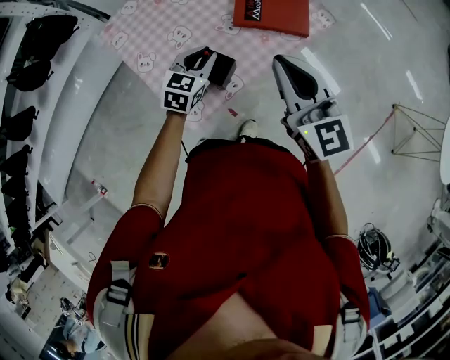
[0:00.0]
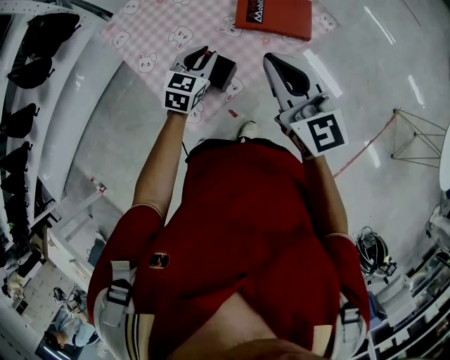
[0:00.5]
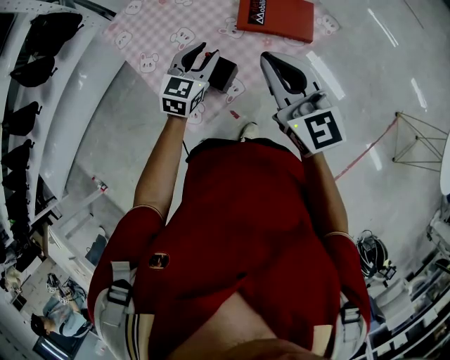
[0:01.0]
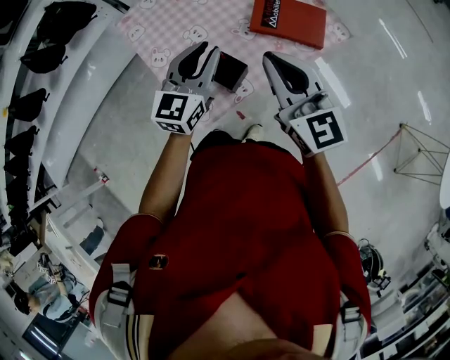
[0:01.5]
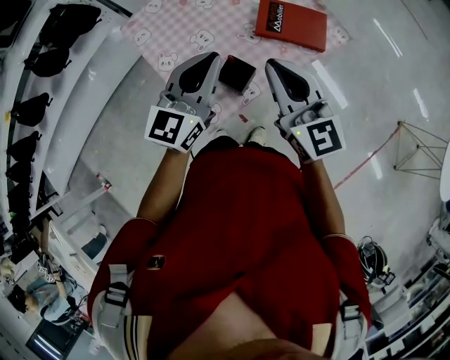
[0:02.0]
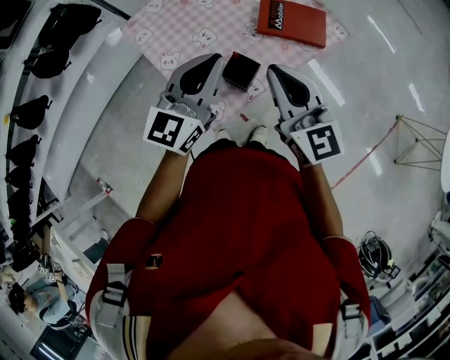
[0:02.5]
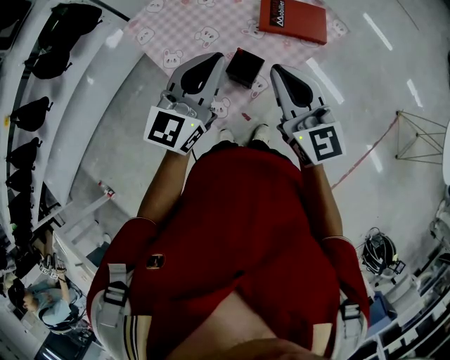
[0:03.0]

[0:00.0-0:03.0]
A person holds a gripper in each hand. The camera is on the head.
0:00.0 to 0:01.5: The left gripper heads upward, covering about 10 cm, and swivels some 20 degrees.
0:01.5 to 0:03.0: The right gripper is displaced backward and to the left by approximately 10 cm; the left gripper is displaced upward and backward by some 10 cm, and closes its fingers.

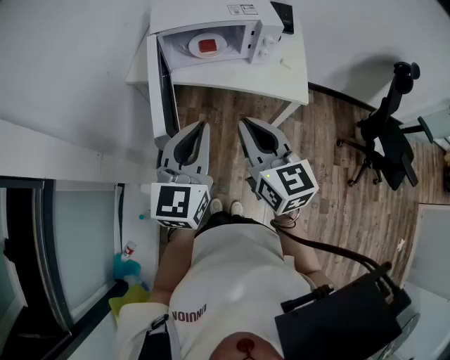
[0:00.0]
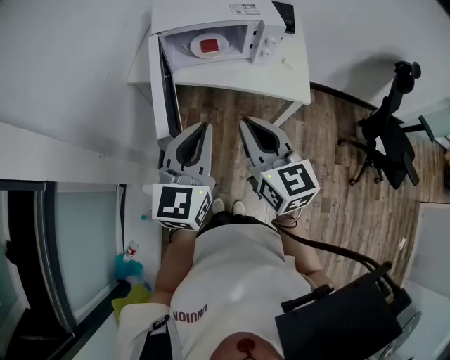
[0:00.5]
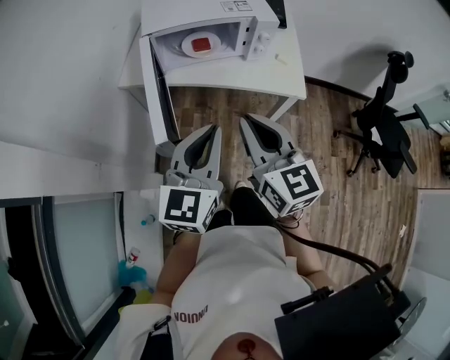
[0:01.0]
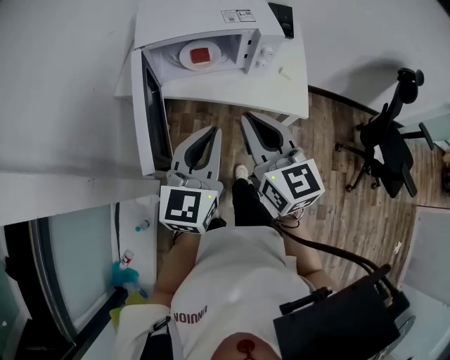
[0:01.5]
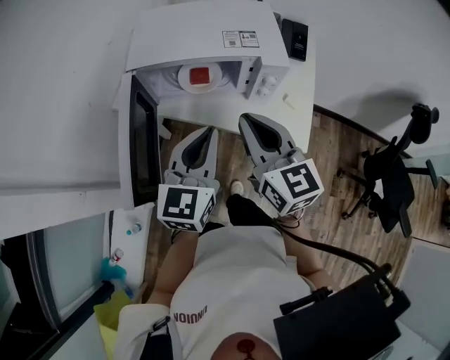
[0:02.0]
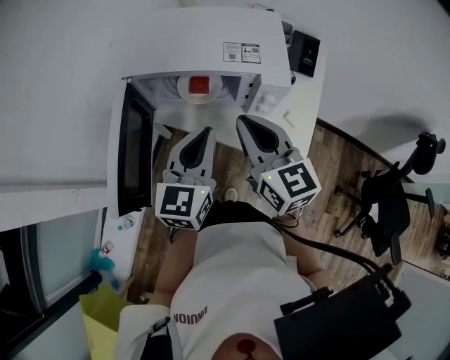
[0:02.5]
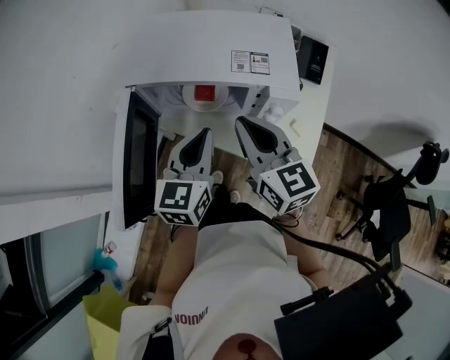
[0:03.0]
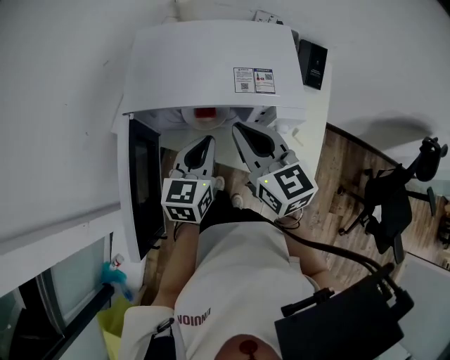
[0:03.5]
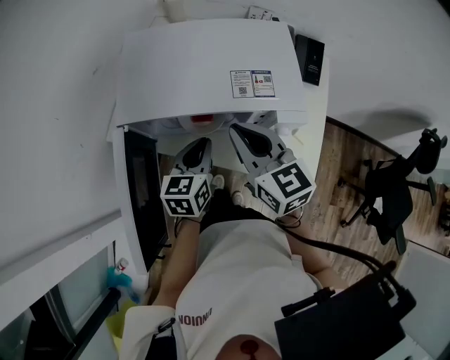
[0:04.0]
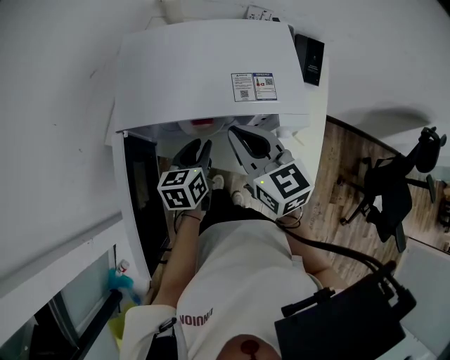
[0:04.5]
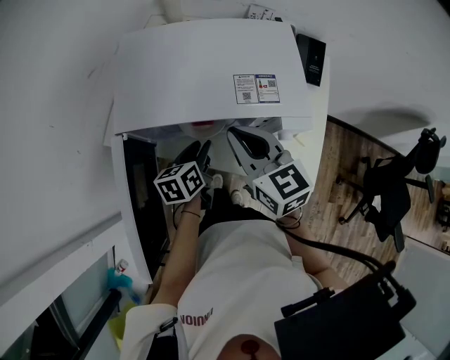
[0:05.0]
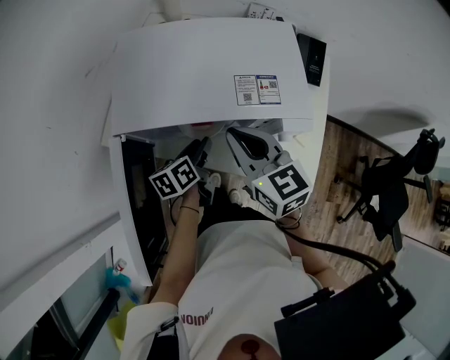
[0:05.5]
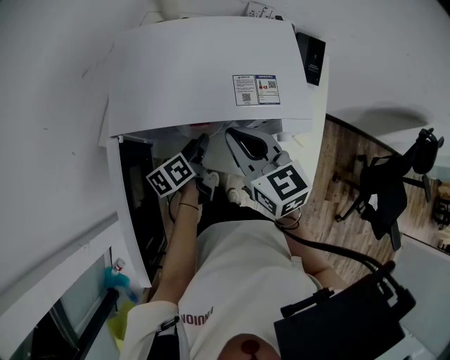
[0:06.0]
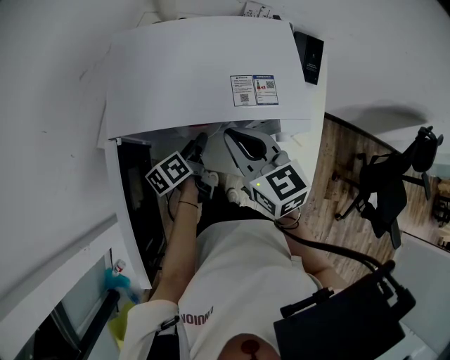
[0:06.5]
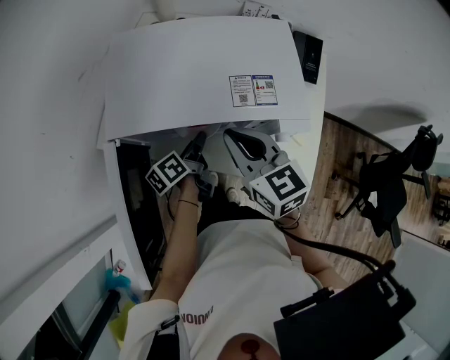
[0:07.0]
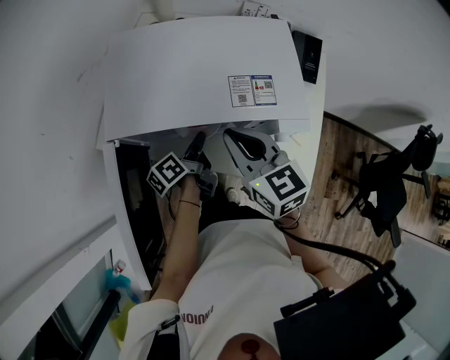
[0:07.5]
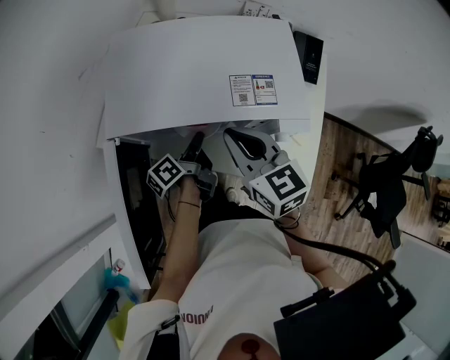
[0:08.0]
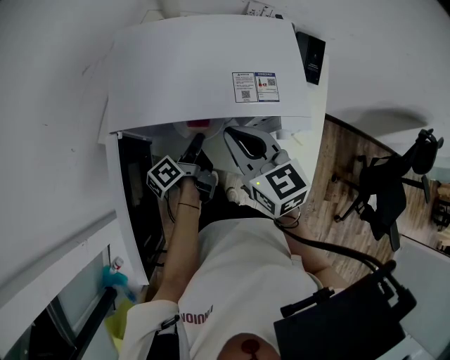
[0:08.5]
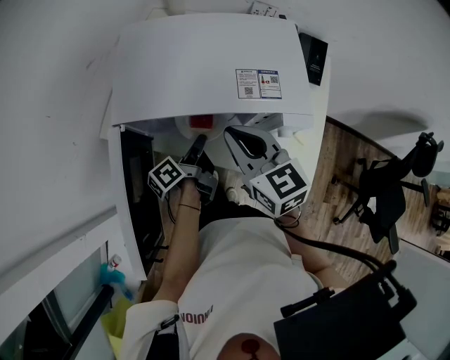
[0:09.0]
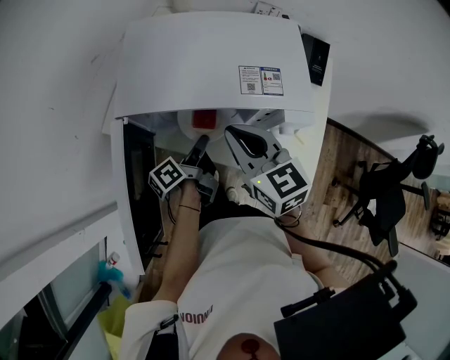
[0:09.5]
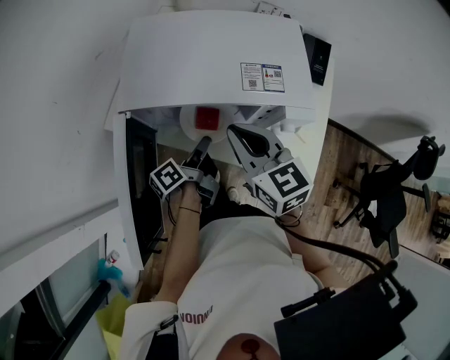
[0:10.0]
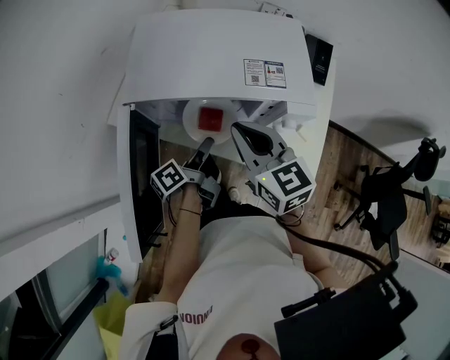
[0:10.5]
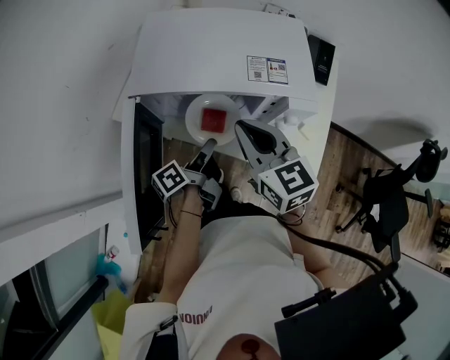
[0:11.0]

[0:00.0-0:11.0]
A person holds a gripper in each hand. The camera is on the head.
0:00.0 to 0:02.0: The right gripper goes about 20 cm forward, while the left gripper travels forward and to the right by some 20 cm.
0:02.0 to 0:03.5: The right gripper heads forward, covering about 15 cm. Meanwhile the left gripper is displaced forward and downward by approximately 15 cm.
0:03.5 to 0:05.5: The right gripper moves approximately 5 cm. The left gripper travels downward and forward by some 15 cm, changes its angle by about 40 degrees, and opens.
0:05.5 to 0:07.5: The left gripper turns by roughly 30 degrees.
0:07.5 to 0:09.0: The grippers make only small movements.
0:09.0 to 0:11.0: The left gripper shifts about 5 cm backward.

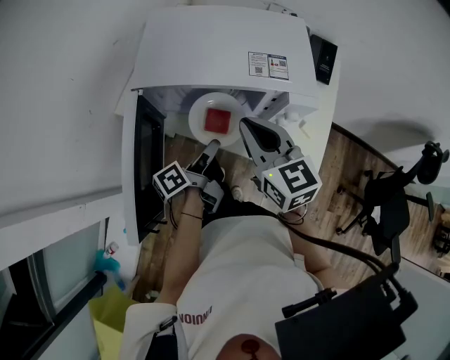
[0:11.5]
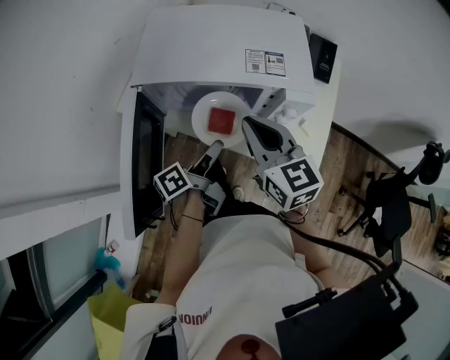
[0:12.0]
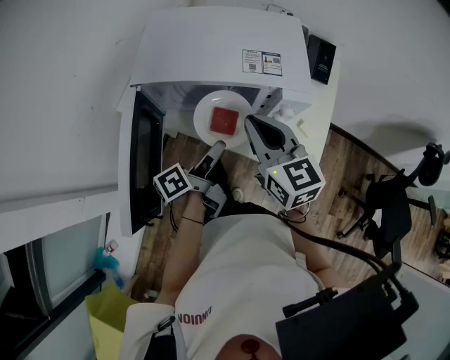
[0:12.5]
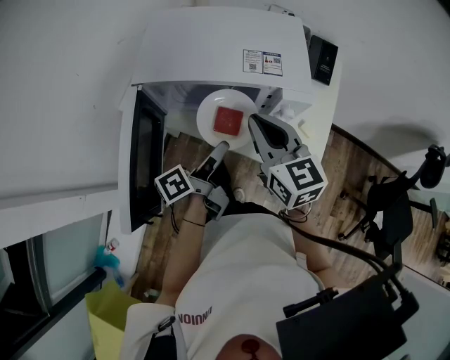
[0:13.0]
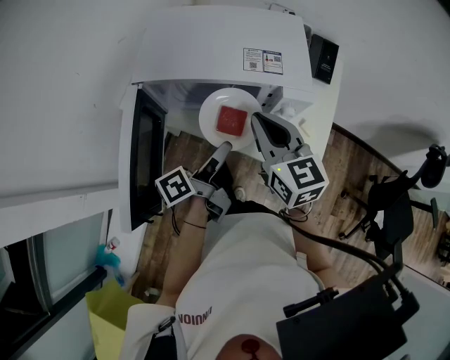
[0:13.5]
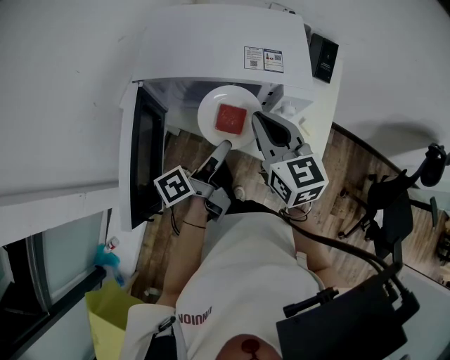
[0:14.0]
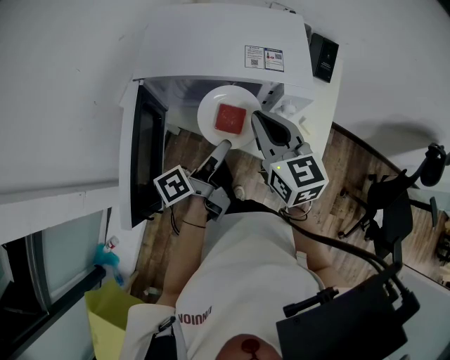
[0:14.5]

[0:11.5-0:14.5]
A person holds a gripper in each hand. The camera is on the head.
0:11.5 to 0:13.0: The left gripper goes about 5 cm upward.
0:13.0 to 0:14.5: There are only small adjustments of the grippers.

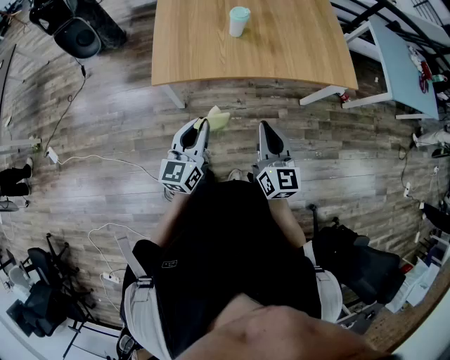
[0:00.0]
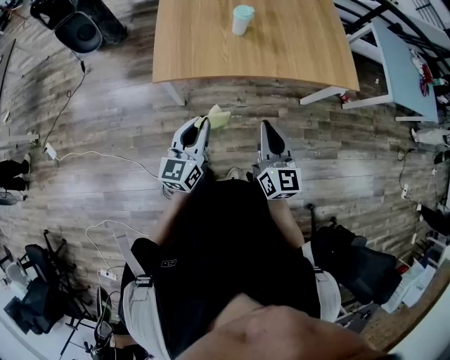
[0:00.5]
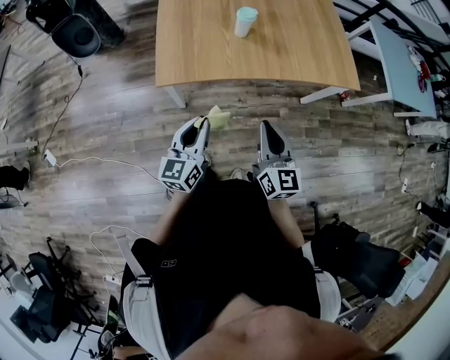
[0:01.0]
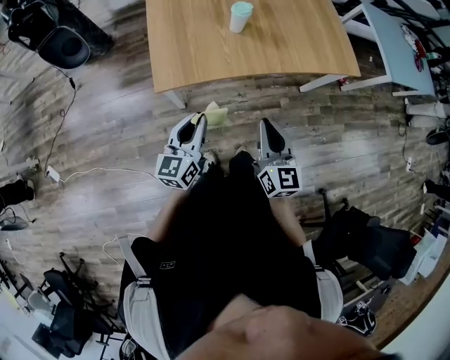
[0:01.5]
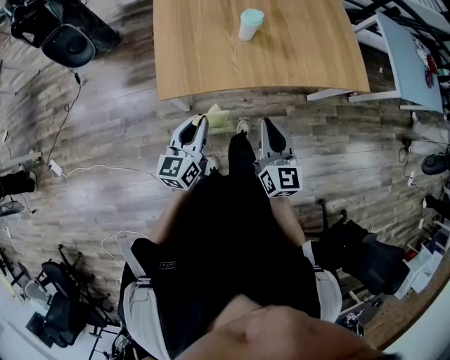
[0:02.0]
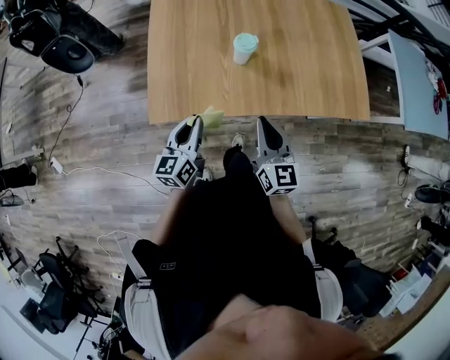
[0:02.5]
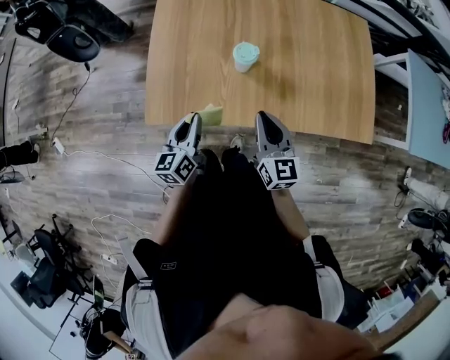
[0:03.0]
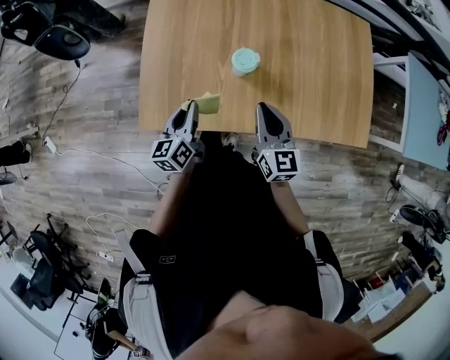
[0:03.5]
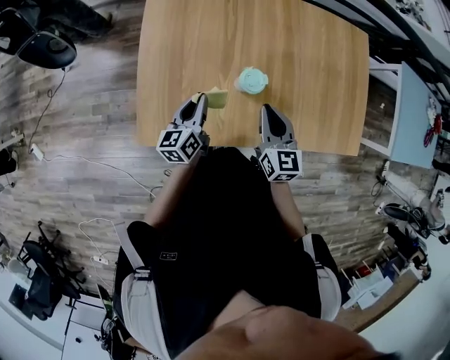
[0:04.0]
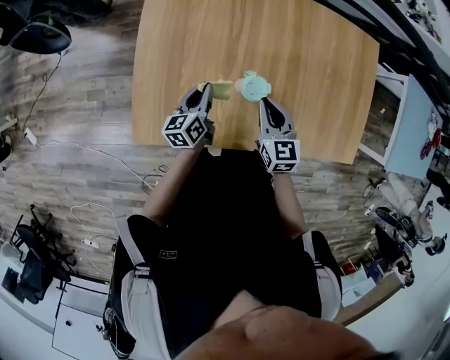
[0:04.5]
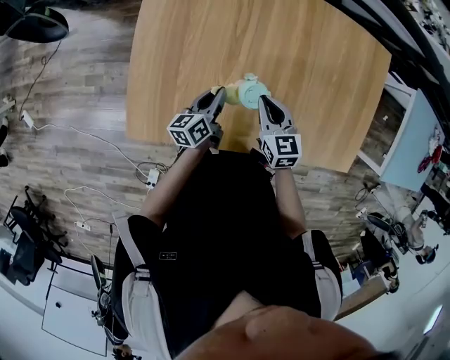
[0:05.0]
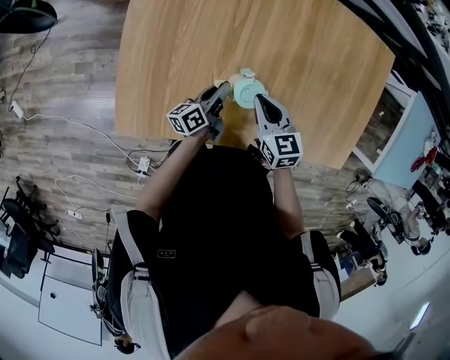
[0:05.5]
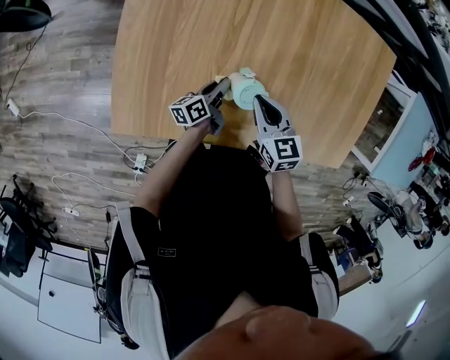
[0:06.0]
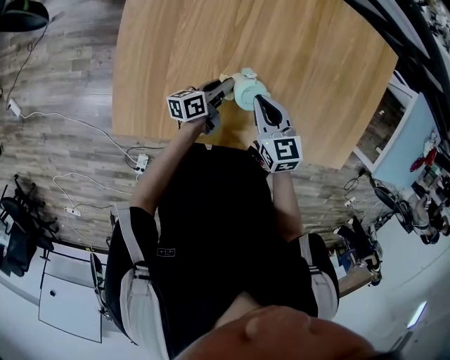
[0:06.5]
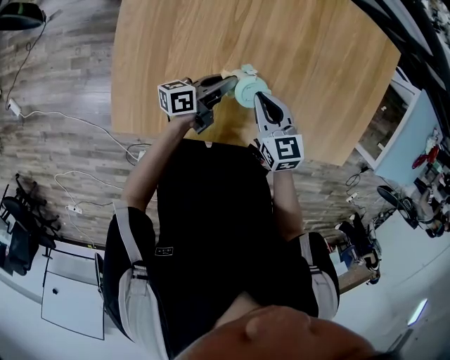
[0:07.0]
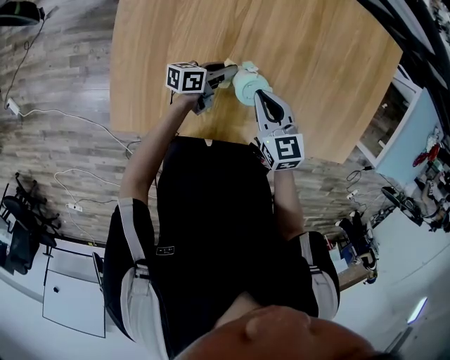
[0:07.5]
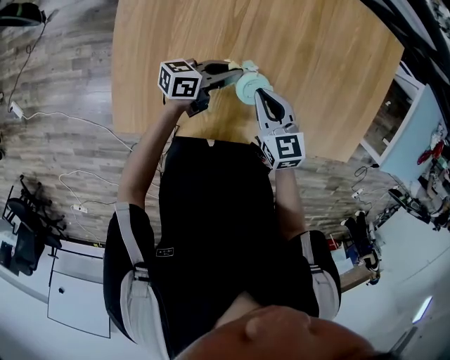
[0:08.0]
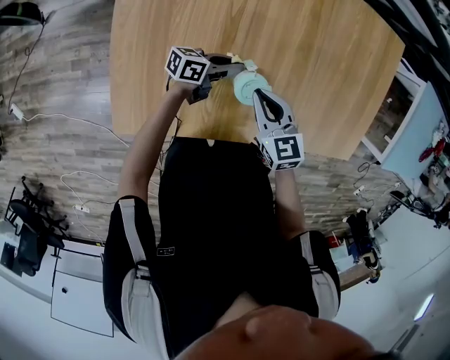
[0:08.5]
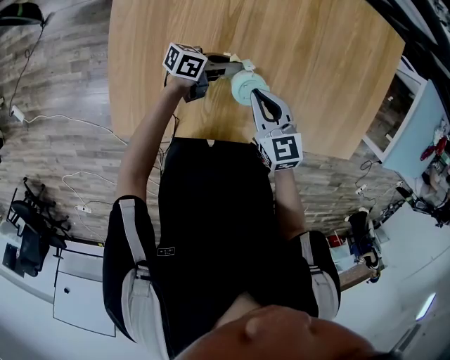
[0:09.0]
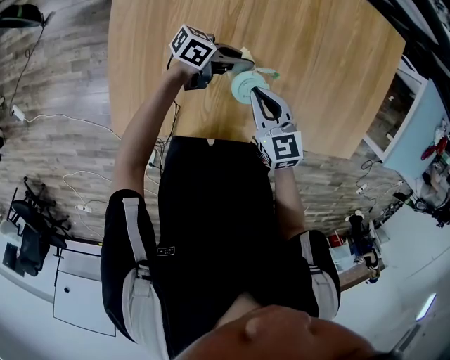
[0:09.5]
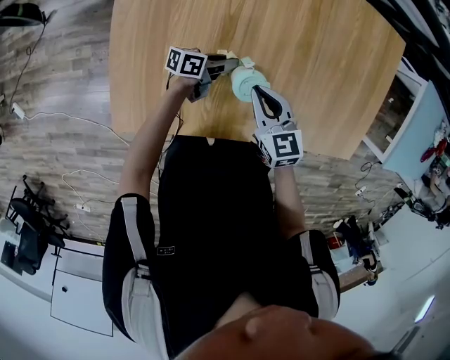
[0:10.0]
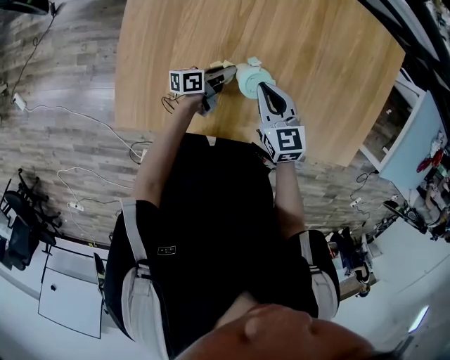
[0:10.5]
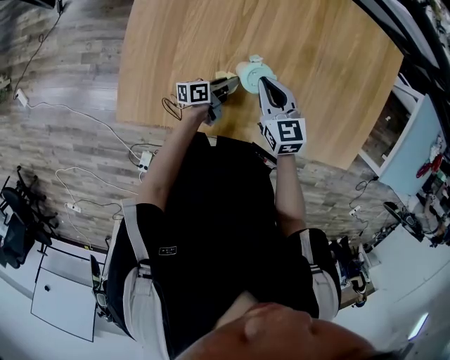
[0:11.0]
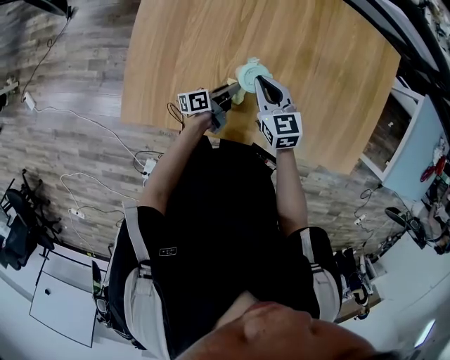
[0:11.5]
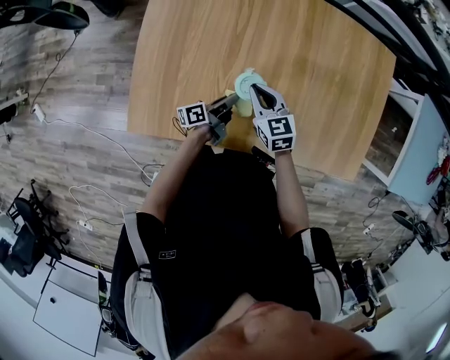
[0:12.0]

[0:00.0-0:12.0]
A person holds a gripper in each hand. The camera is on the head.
0:00.0 to 0:02.0: Both grippers move forward and to the left, approximately 15 cm.
0:02.0 to 0:04.0: The grippers both shift forward by about 35 cm. The left gripper turns by about 20 degrees.
0:04.0 to 0:06.0: The right gripper heads downward and forward, covering roughly 15 cm, and turns by about 30 degrees, while the left gripper shifts about 20 cm downward and to the right, and swivels about 40 degrees.
0:06.0 to 0:08.0: The left gripper swings up and down, roughly 10 cm each way, with 2 reversals, and turns by approximately 40 degrees.
0:08.0 to 0:10.0: The left gripper moves up and down over roughly 10 cm, changing direction 2 times.
0:10.0 to 0:12.0: The left gripper travels backward by approximately 10 cm, and turns by about 30 degrees.
